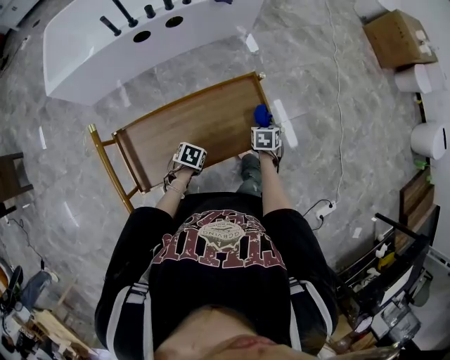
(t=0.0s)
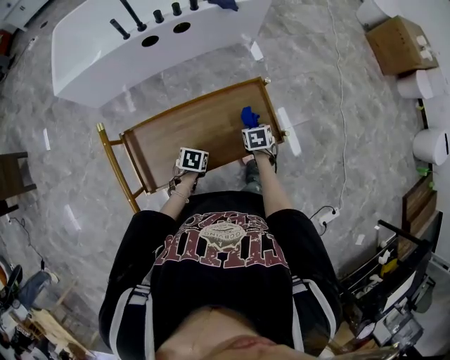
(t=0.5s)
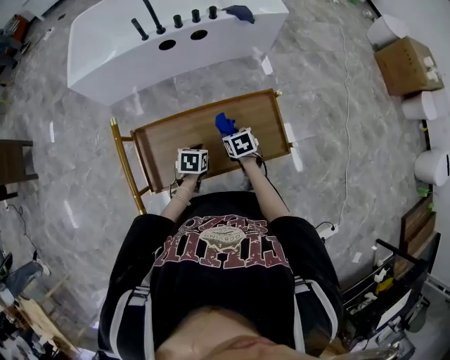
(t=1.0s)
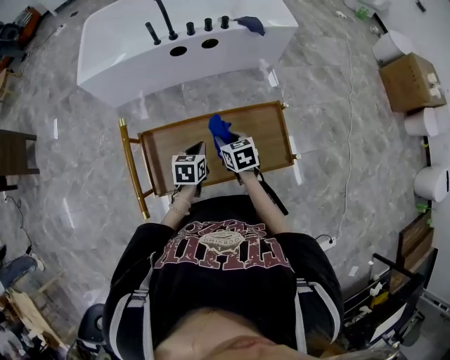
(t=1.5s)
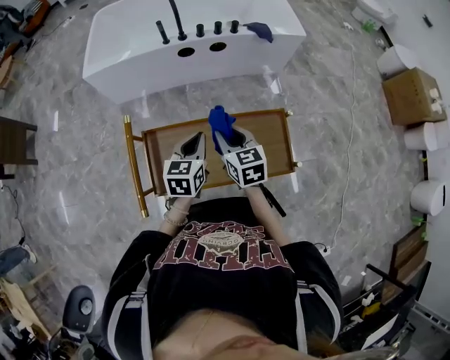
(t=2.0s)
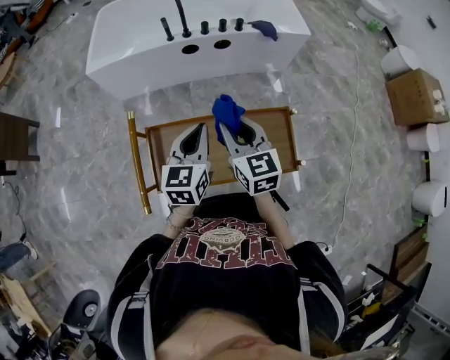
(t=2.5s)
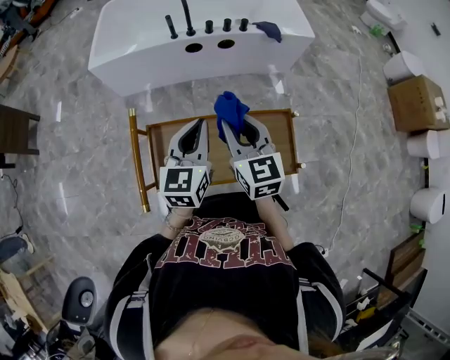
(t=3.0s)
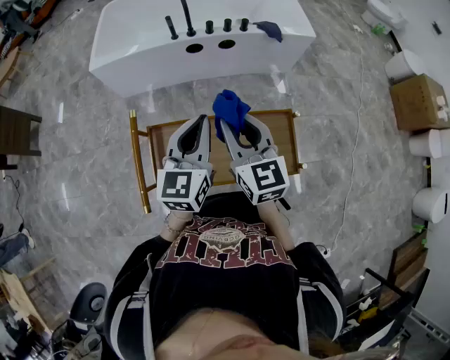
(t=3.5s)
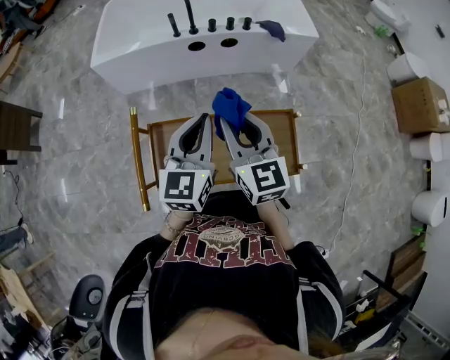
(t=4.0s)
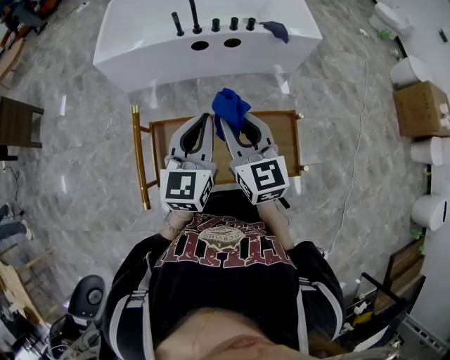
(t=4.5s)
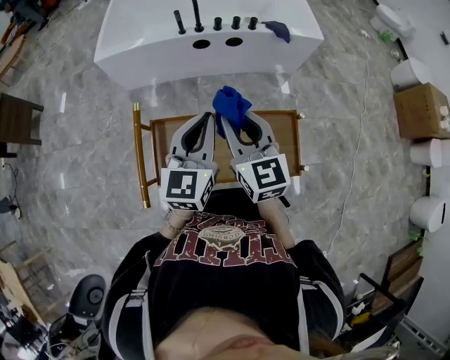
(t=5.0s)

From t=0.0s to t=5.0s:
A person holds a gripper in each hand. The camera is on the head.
From t=0.0s to t=2.5s: The two grippers go about 35 cm upward. The right gripper tilts its fingers roughly 50 degrees upward, while the left gripper tilts its fingers some 50 degrees upward.
From t=2.5s to t=5.0s: Both grippers travel together upward, roughly 5 cm.

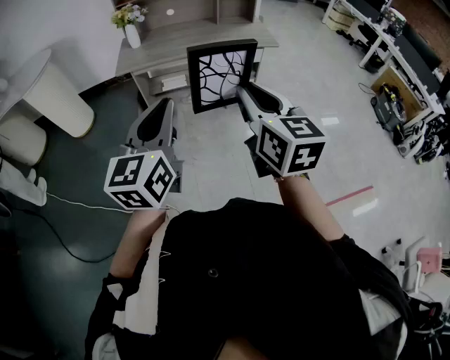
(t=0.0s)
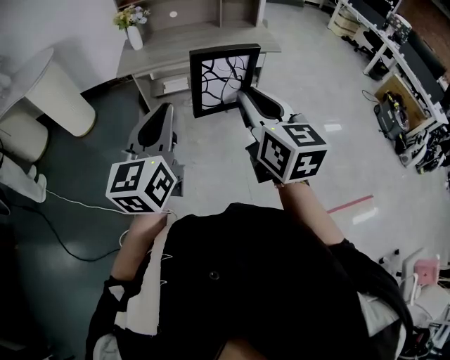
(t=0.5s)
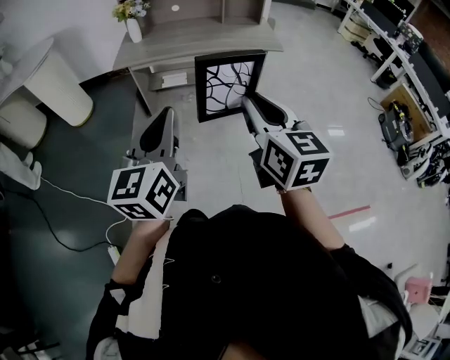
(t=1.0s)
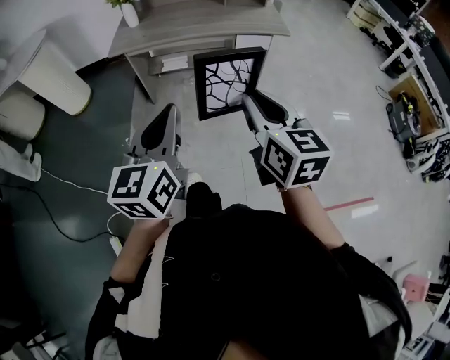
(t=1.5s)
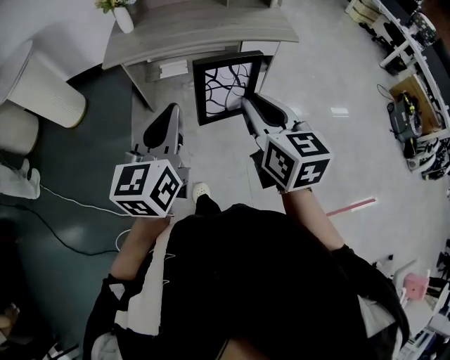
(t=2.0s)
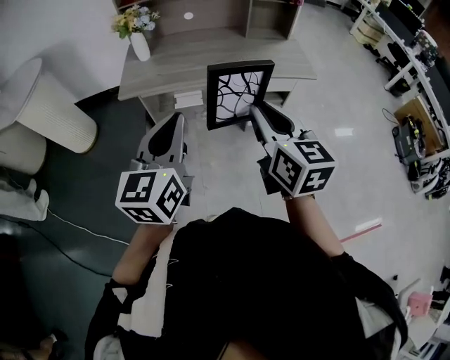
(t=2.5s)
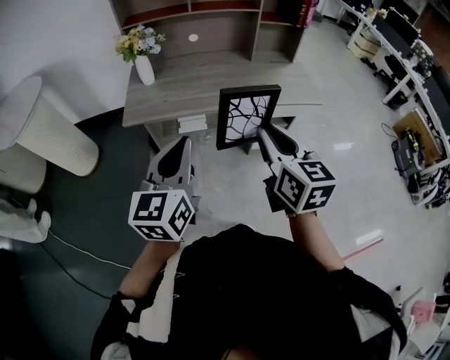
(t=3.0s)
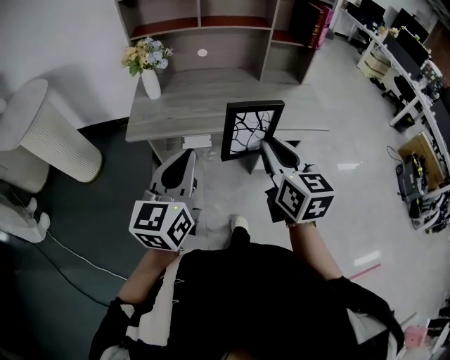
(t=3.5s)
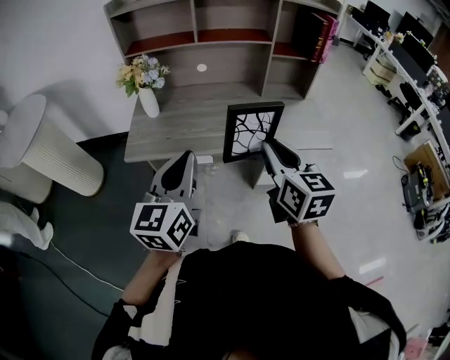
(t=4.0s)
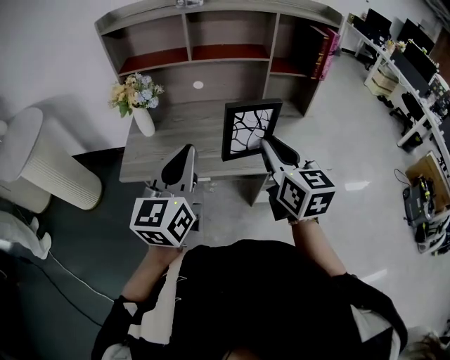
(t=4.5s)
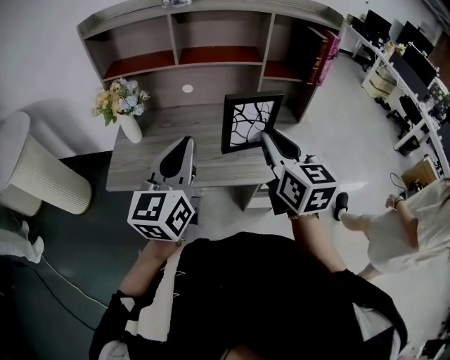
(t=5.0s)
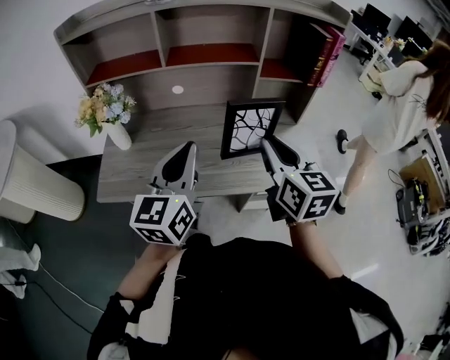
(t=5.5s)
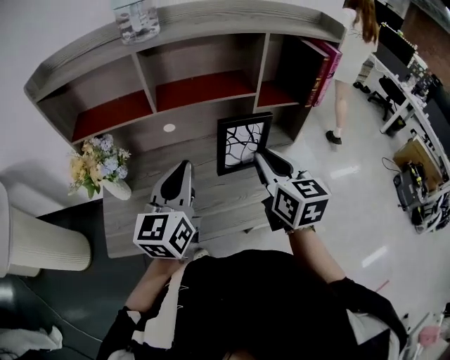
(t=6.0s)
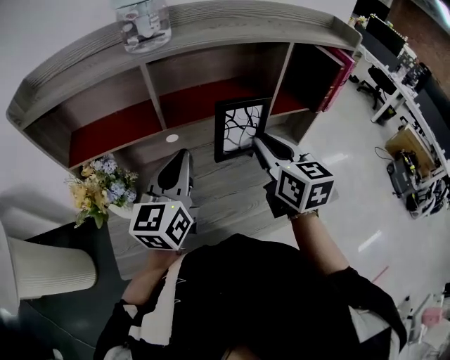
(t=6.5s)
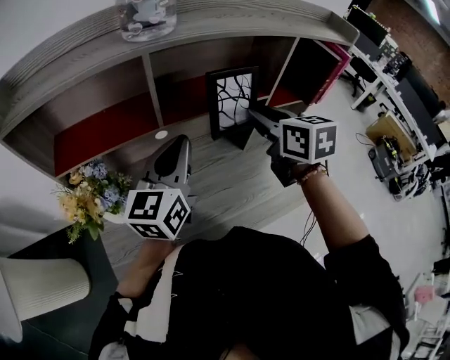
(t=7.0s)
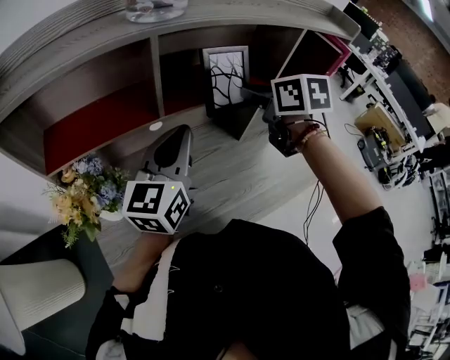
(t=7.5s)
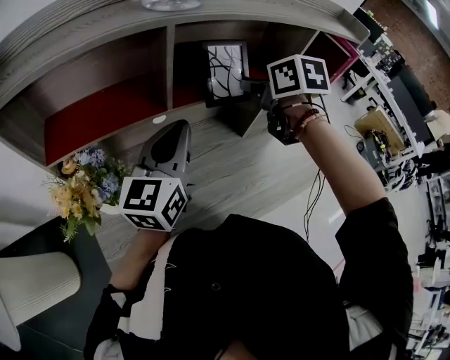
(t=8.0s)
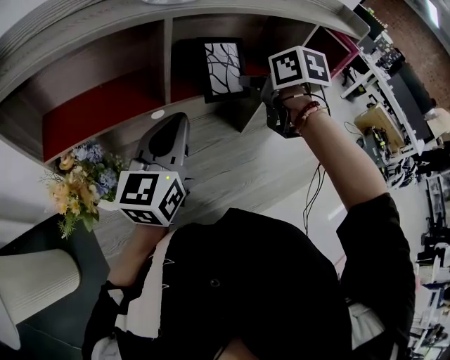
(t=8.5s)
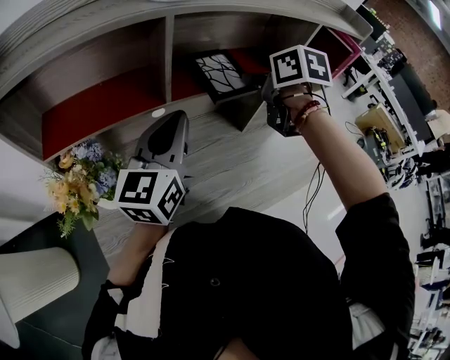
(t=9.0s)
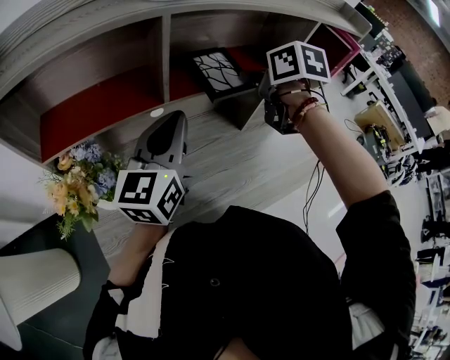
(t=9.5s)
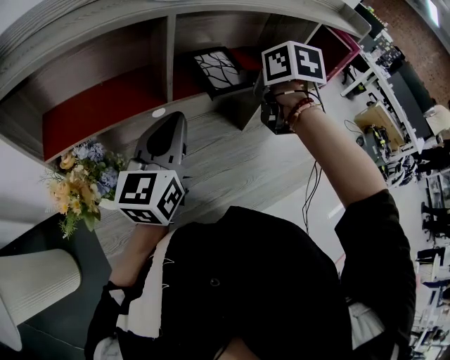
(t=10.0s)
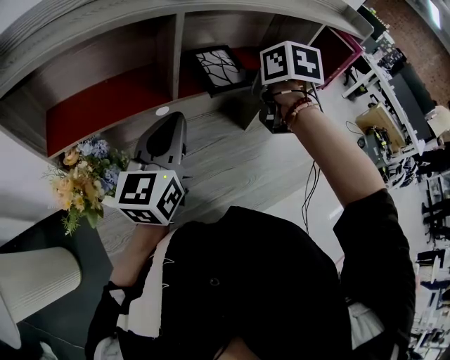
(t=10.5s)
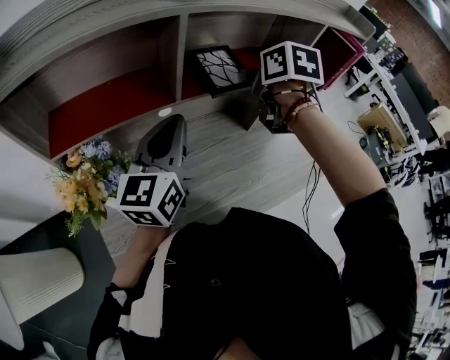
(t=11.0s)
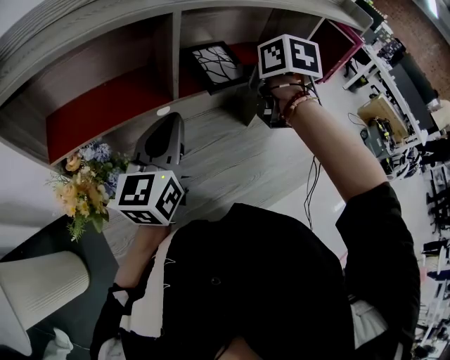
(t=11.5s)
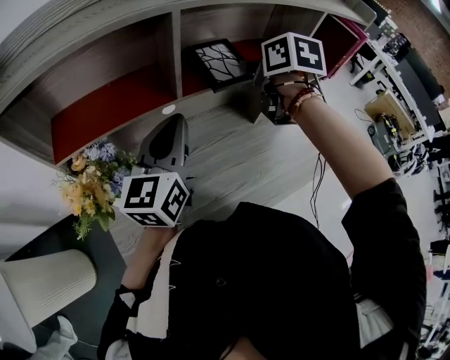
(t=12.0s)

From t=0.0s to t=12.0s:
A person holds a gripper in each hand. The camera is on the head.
From t=0.0s to t=2.0s: The two grippers go approximately 20 cm forward and downward.
From t=2.0s to t=4.0s: Both grippers travel together forward, about 35 cm.
From t=4.0s to t=6.0s: The grippers both shift forward by about 30 cm.
From t=6.0s to t=8.0s: Both grippers travel together forward and to the left, roughly 20 cm. The right gripper rotates about 30 degrees.
From t=8.0s to t=10.0s: The grippers move only a little.
From t=10.0s to t=12.0s: Both grippers stay about where they are.

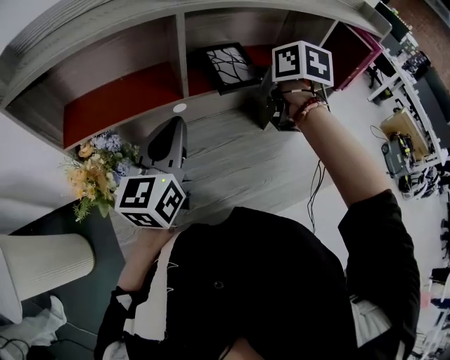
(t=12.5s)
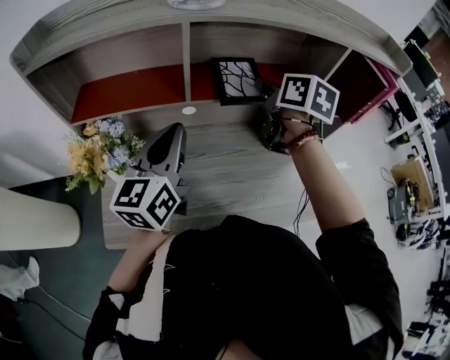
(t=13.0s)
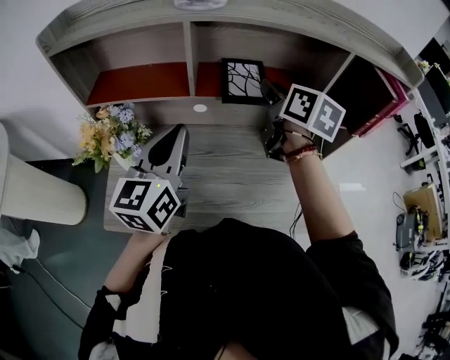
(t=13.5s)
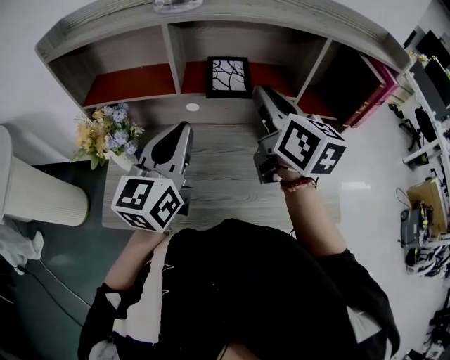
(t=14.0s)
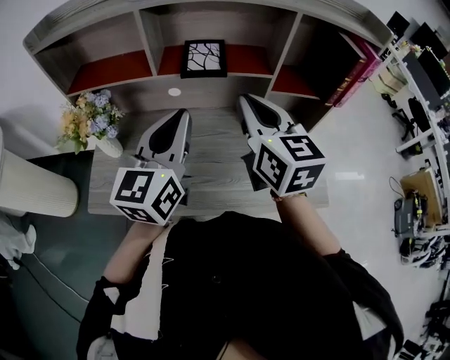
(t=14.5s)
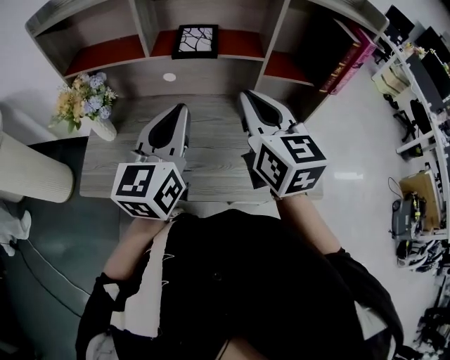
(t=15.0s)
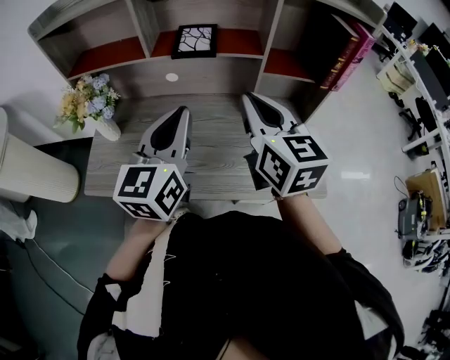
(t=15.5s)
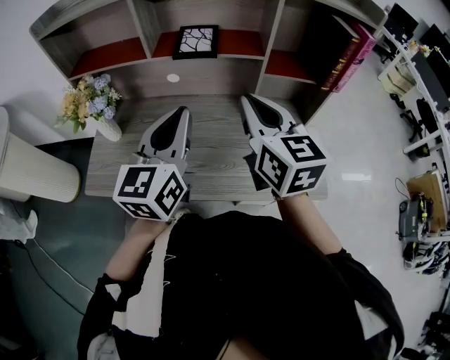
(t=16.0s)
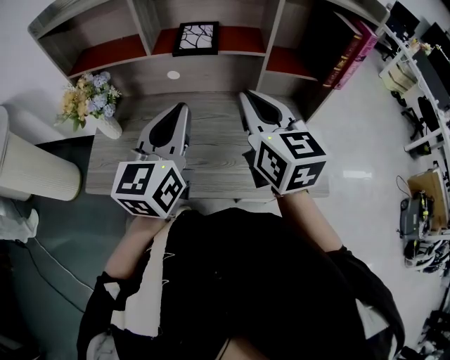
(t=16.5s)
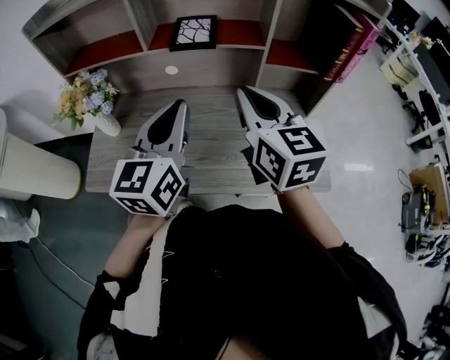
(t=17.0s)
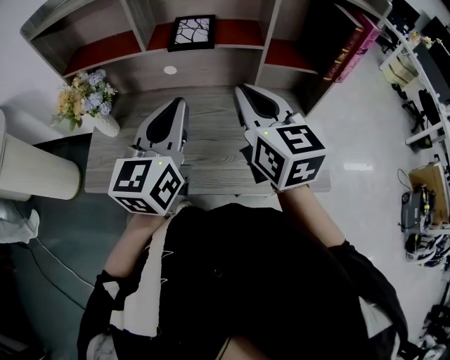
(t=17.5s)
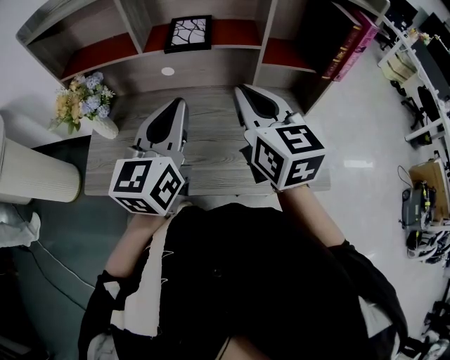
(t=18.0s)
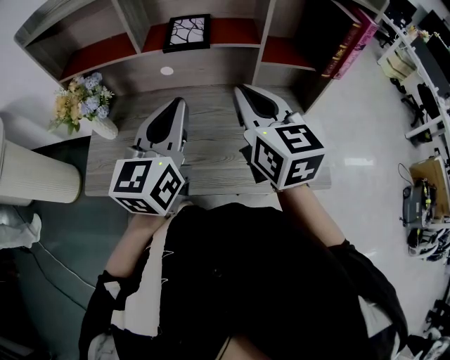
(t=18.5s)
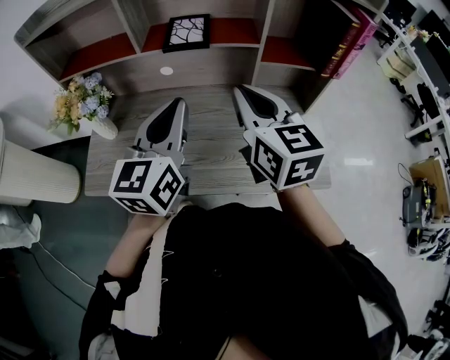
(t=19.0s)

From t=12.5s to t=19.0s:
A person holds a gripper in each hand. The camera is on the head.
From t=12.5s to t=14.5s: The left gripper heads to the right and backward, covering about 15 cm. The right gripper travels backward by some 15 cm, and tips its fingers upward by some 30 degrees.
From t=14.5s to t=17.0s: The left gripper moves approximately 5 cm. The right gripper changes place by some 5 cm.
From t=17.0s to t=19.0s: The two grippers keep their place.

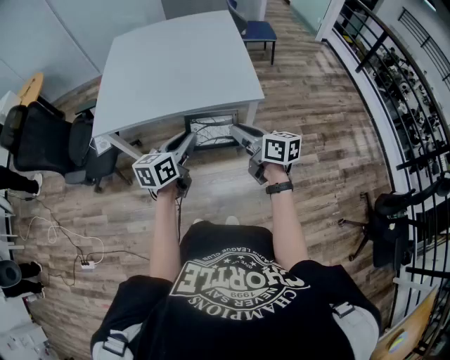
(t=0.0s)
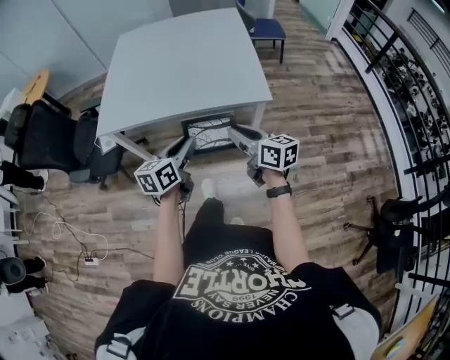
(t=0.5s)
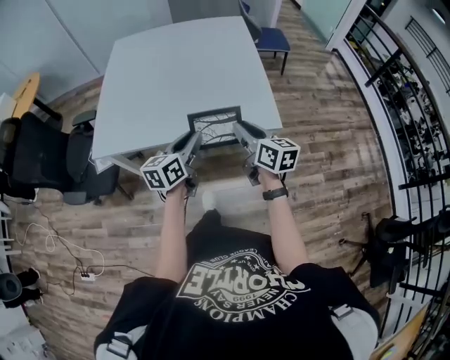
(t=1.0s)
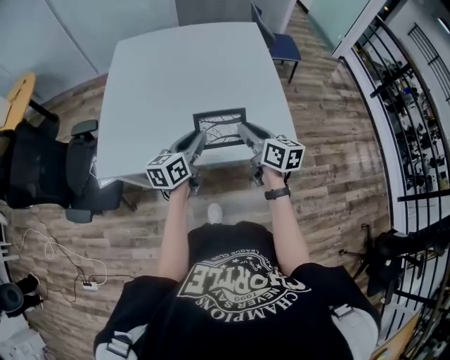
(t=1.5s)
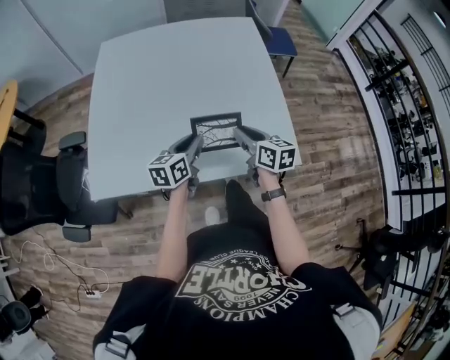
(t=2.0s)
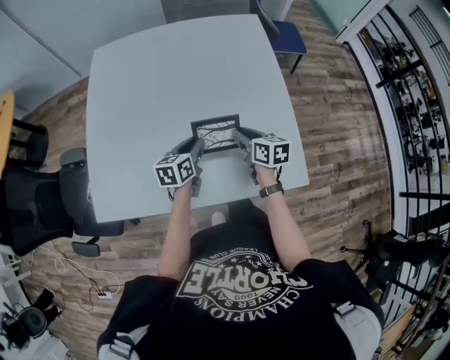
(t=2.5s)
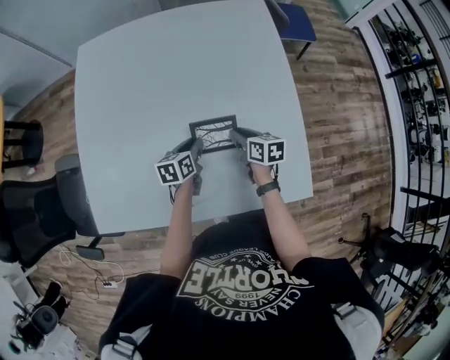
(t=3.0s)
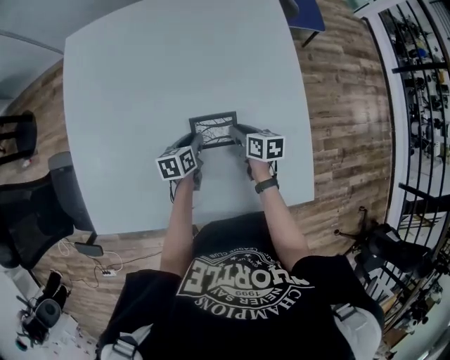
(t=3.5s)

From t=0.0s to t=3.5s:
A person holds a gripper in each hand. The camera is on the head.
From t=0.0s to t=2.0s: The grippers both shift forward and downward by about 40 cm.
From t=2.0s to t=3.5s: The right gripper moves up and down over roughly 15 cm, changing direction 2 times. Meanwhile the left gripper moves up and down over approximately 15 cm, changing direction 2 times.
